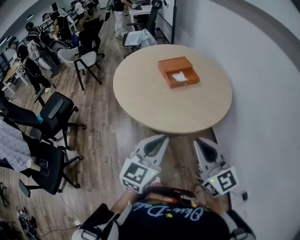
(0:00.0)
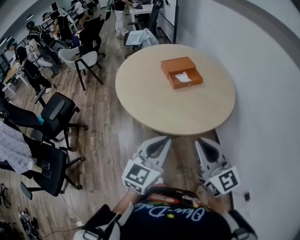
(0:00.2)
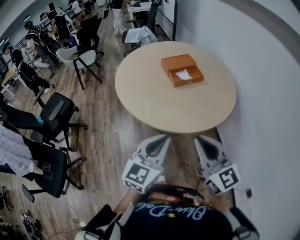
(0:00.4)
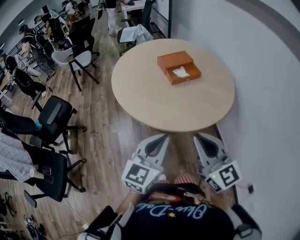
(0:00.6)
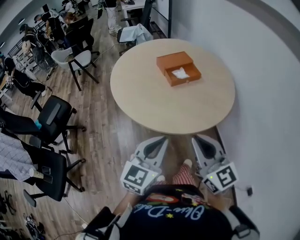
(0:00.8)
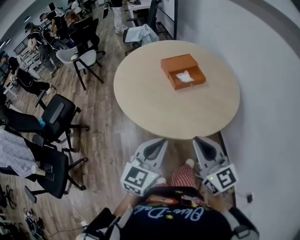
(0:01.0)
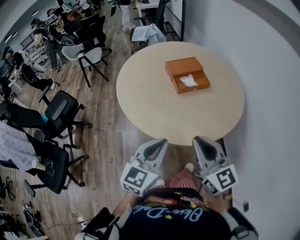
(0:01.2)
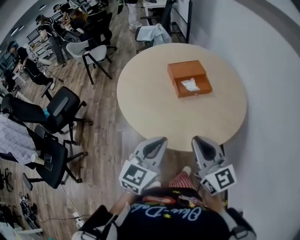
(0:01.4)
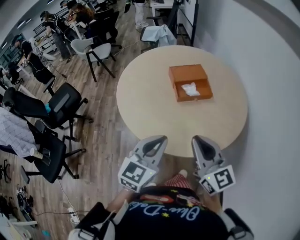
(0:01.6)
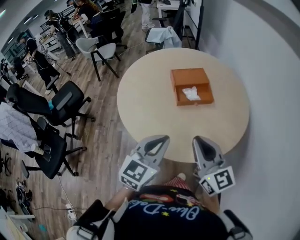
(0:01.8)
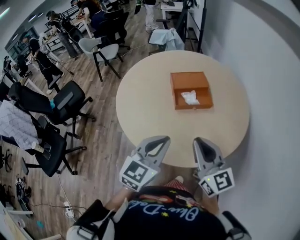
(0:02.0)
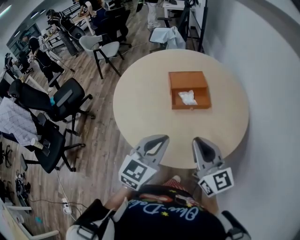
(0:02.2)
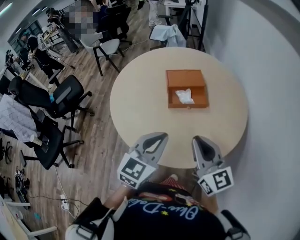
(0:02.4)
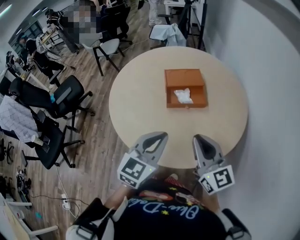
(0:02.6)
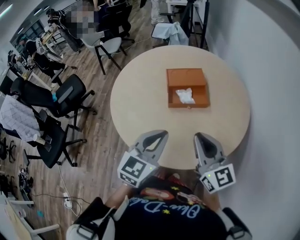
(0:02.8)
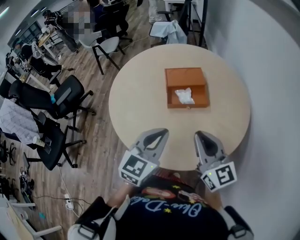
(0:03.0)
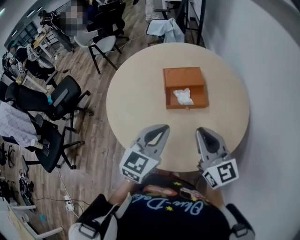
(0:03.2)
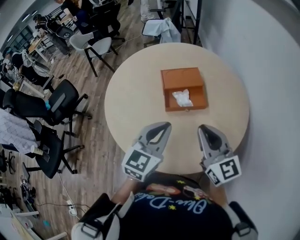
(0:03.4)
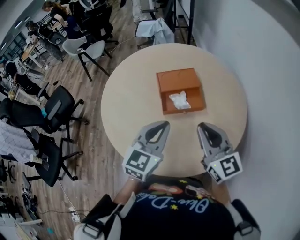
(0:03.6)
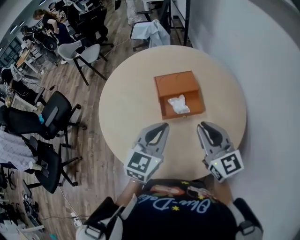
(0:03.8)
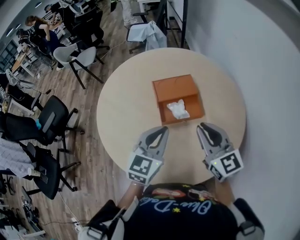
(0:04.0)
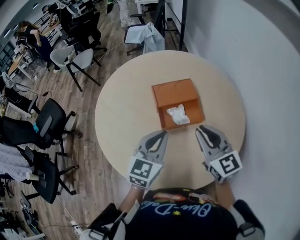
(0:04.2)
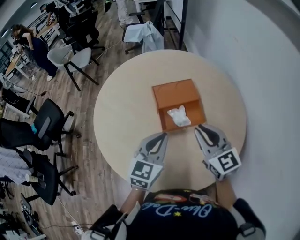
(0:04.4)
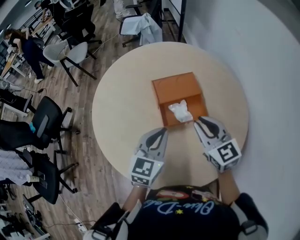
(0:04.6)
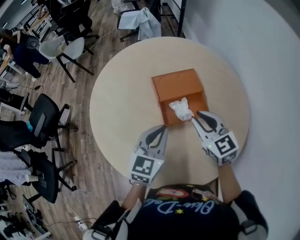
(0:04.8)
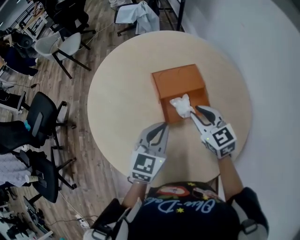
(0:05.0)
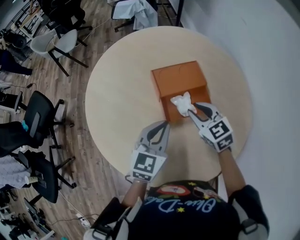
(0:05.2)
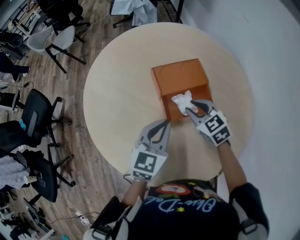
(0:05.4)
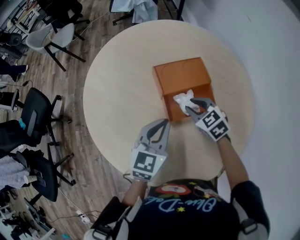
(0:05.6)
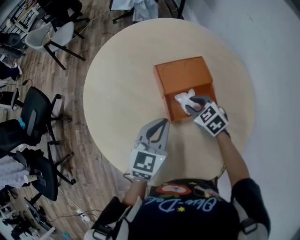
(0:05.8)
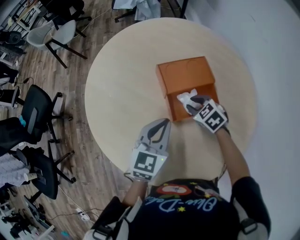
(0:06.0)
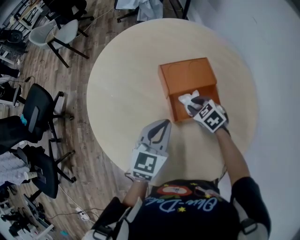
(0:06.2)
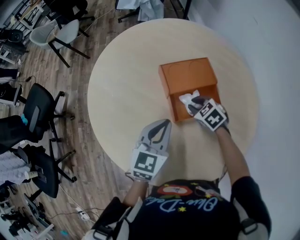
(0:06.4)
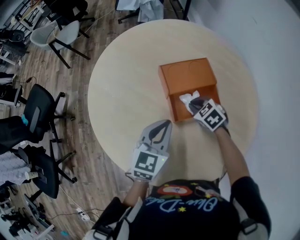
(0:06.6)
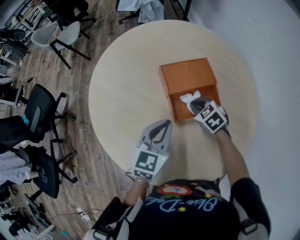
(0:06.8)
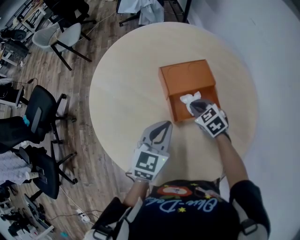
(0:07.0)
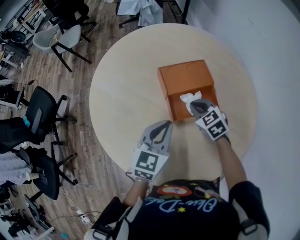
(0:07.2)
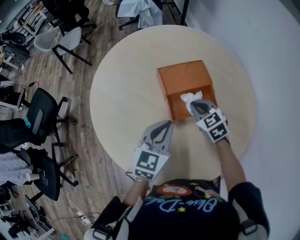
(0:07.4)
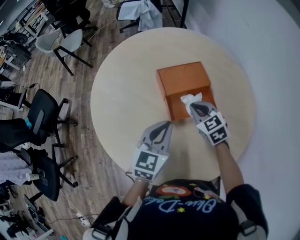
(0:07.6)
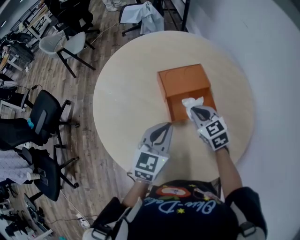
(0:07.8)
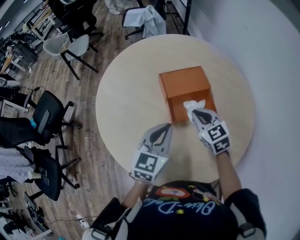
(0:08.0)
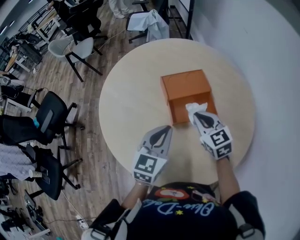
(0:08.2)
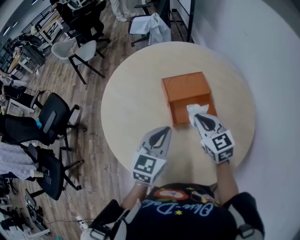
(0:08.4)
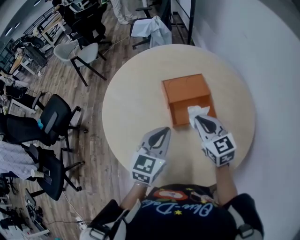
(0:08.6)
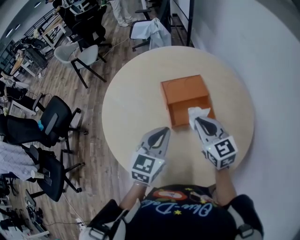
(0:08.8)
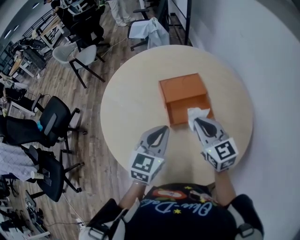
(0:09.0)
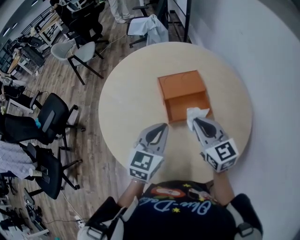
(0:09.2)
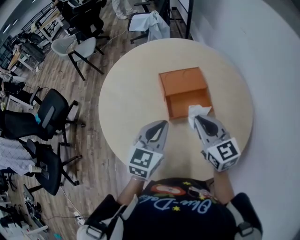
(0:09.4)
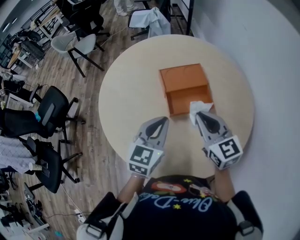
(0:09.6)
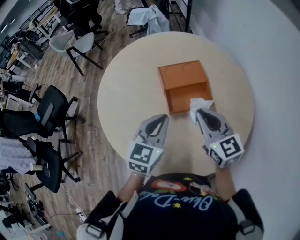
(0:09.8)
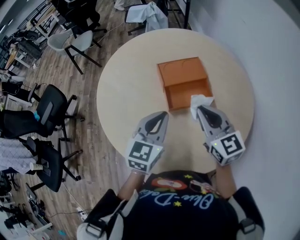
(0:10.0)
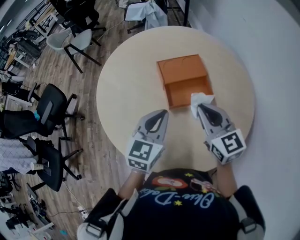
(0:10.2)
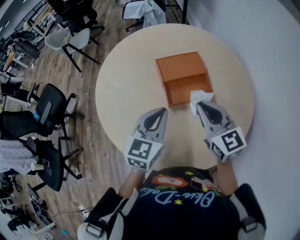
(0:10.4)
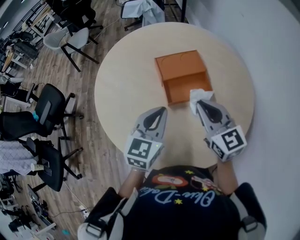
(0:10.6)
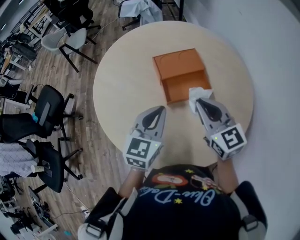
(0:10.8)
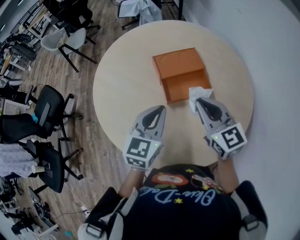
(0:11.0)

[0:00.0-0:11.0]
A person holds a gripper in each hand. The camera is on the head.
0:00.0 to 0:01.6: The two grippers go about 15 cm forward.
0:01.6 to 0:03.2: The two grippers go approximately 15 cm forward and to the right.
0:03.2 to 0:04.8: The grippers both shift forward and downward by approximately 20 cm. The right gripper changes its angle by approximately 30 degrees.
0:04.8 to 0:06.2: The right gripper goes roughly 20 cm downward, and tips its fingers downward by about 40 degrees, while the left gripper shifts by some 5 cm.
0:06.2 to 0:07.8: The right gripper is displaced upward by roughly 10 cm, and rotates approximately 30 degrees.
0:07.8 to 0:09.4: The right gripper heads upward and backward, covering roughly 15 cm, and swivels roughly 20 degrees.
0:09.4 to 0:11.0: Both grippers stay about where they are.

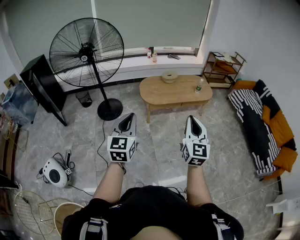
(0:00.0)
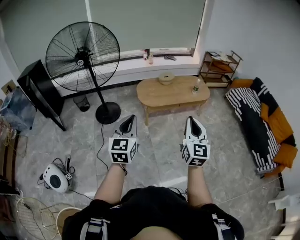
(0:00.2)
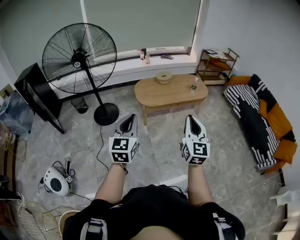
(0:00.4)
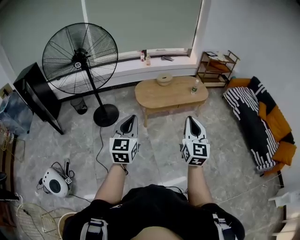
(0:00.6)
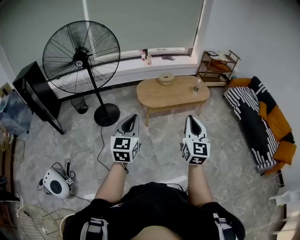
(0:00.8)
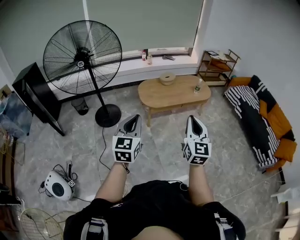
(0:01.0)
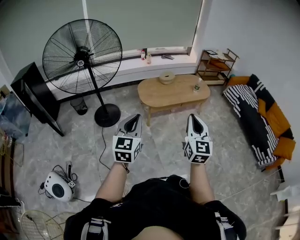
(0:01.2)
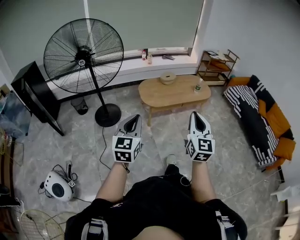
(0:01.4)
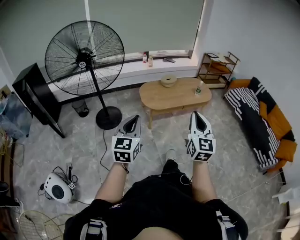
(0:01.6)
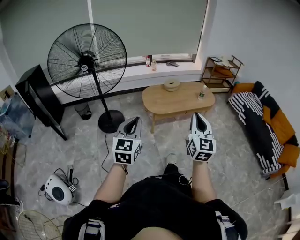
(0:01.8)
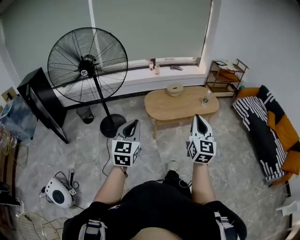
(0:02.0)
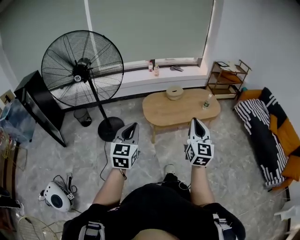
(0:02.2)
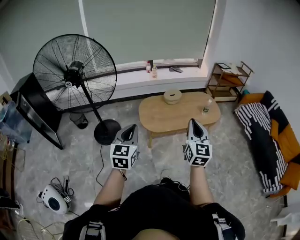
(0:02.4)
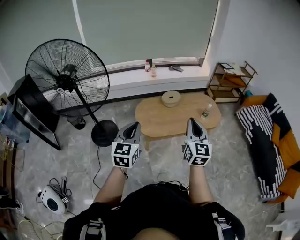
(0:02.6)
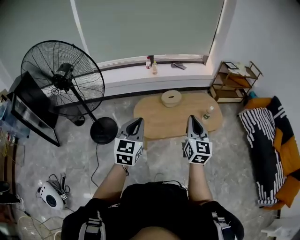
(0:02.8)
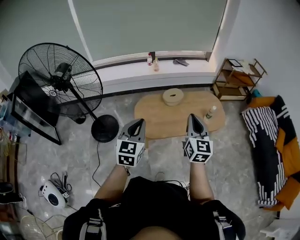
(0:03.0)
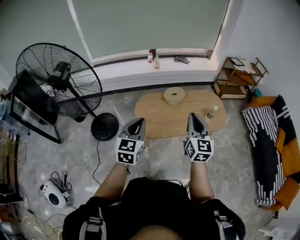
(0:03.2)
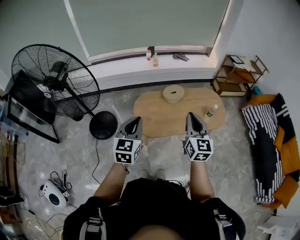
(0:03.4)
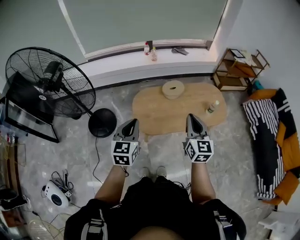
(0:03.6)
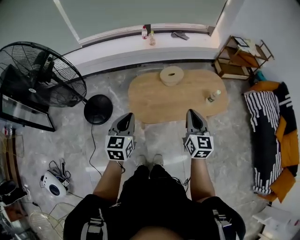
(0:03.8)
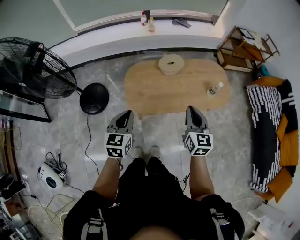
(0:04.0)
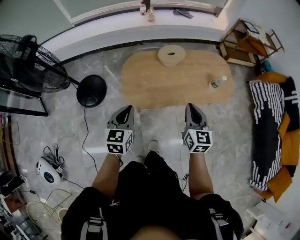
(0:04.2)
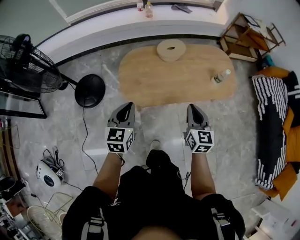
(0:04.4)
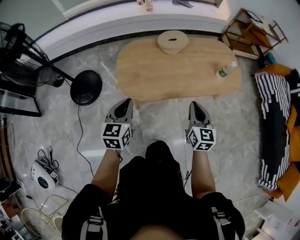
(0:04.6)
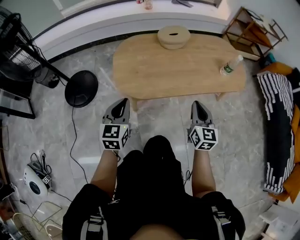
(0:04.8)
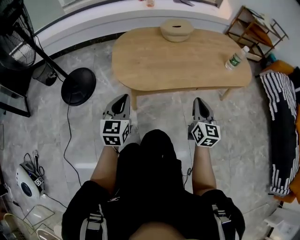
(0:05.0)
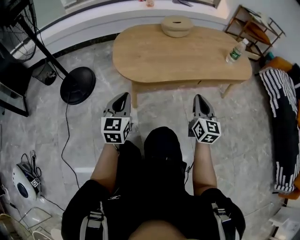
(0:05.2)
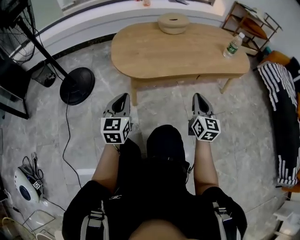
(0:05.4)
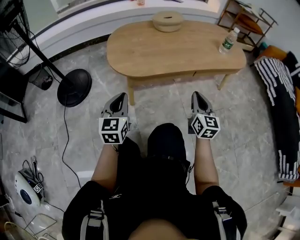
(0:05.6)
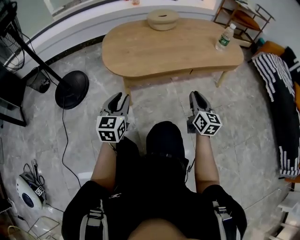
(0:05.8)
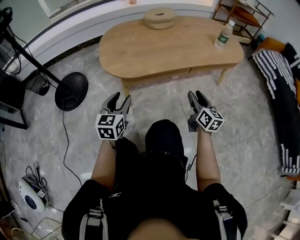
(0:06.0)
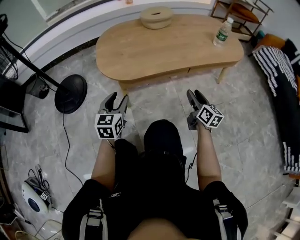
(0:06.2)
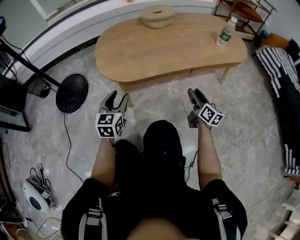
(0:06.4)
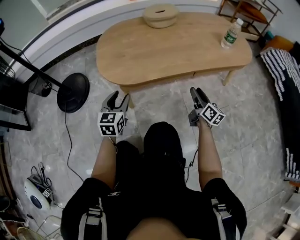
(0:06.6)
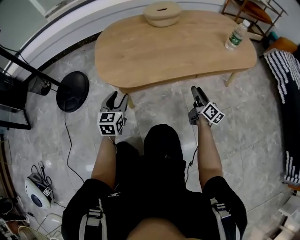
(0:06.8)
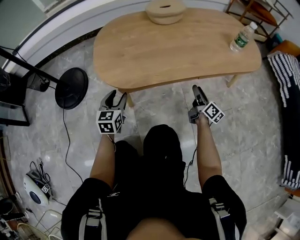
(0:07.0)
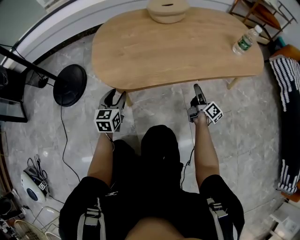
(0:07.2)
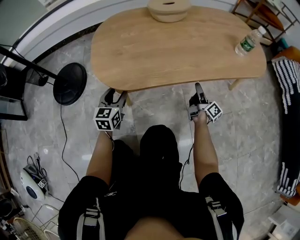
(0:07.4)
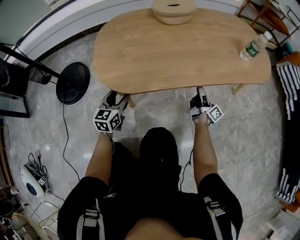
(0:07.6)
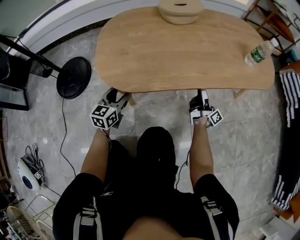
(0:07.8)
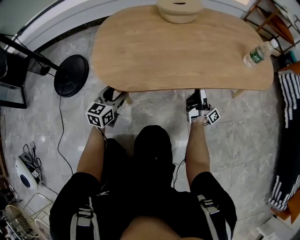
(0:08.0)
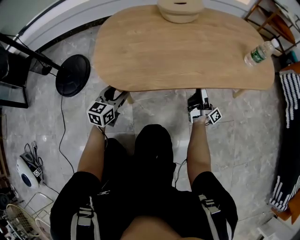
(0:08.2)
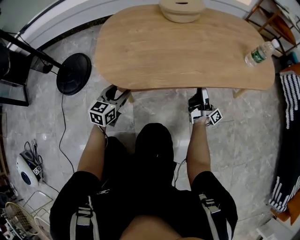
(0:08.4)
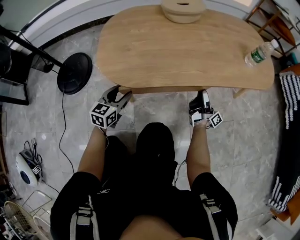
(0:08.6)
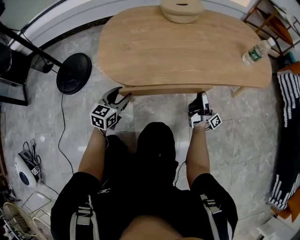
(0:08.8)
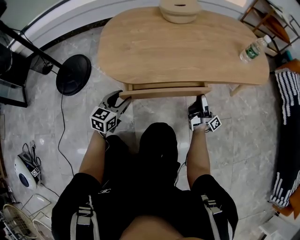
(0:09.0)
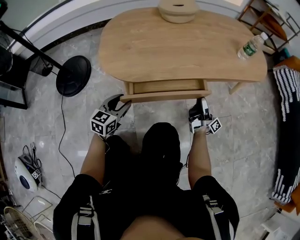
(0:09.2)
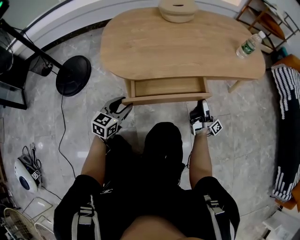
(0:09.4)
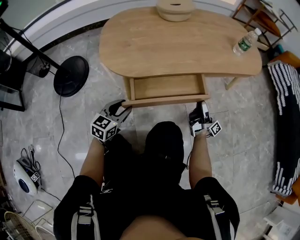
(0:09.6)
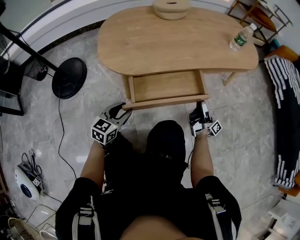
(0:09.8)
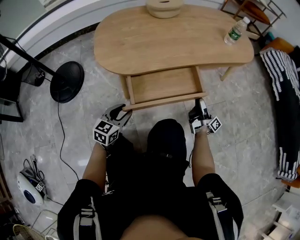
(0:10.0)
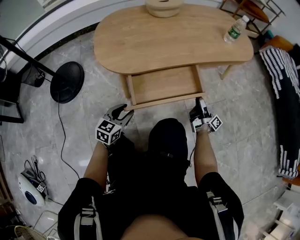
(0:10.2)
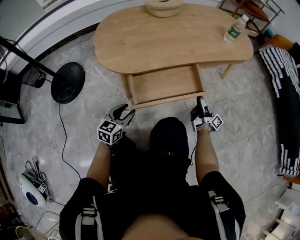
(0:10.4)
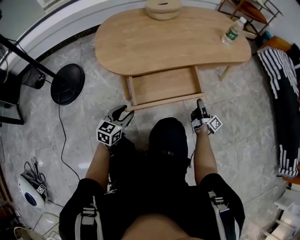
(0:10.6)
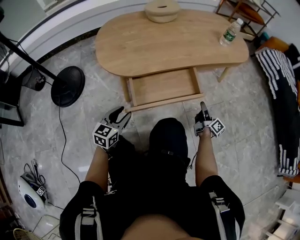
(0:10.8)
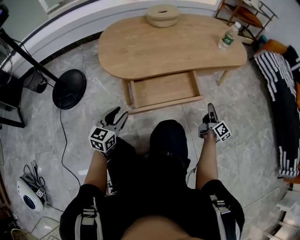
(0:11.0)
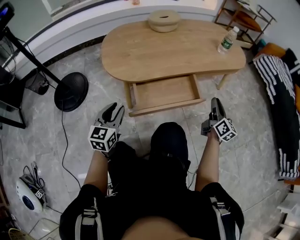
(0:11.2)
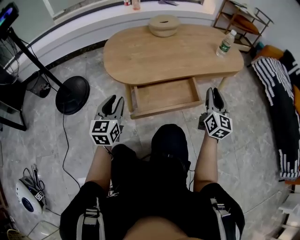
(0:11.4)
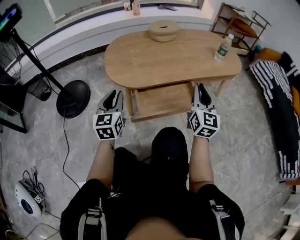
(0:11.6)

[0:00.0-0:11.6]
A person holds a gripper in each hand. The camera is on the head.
0:00.0 to 0:01.4: The two grippers go some 10 cm to the left.
0:01.4 to 0:02.8: Both grippers are carried forward, about 60 cm.
0:02.8 to 0:04.4: The two grippers go roughly 35 cm downward and forward. The right gripper changes its angle by roughly 20 degrees.
0:04.4 to 0:05.8: Both grippers move downward, roughly 40 cm. The left gripper opens.
0:05.8 to 0:07.2: Both grippers move forward and downward, about 25 cm. The left gripper opens. Meanwhile the right gripper rolls clockwise, seen from behind, by roughly 50 degrees, and opens.
0:07.2 to 0:08.8: The right gripper changes its angle by roughly 30 degrees.
0:08.8 to 0:10.2: The two grippers go some 15 cm backward.
0:10.2 to 0:11.6: The left gripper is displaced upward by some 20 cm, and swivels some 30 degrees. Meanwhile the right gripper heads upward, covering approximately 30 cm, rotates around the line of its fingers by some 80 degrees, counterclockwise from behind, and closes its fingers.

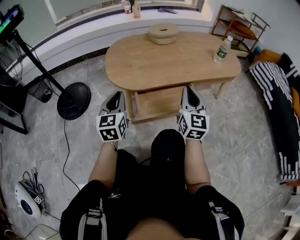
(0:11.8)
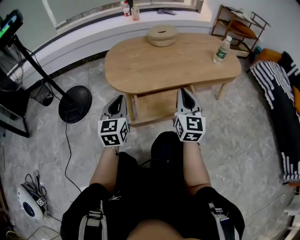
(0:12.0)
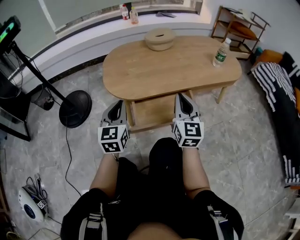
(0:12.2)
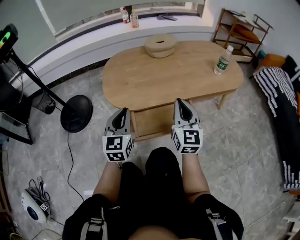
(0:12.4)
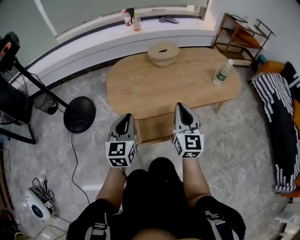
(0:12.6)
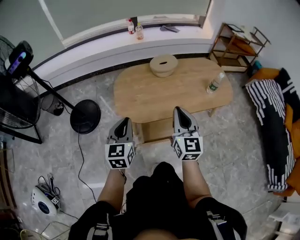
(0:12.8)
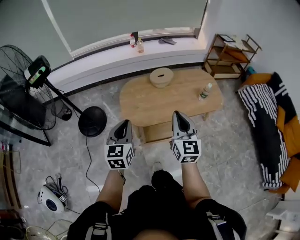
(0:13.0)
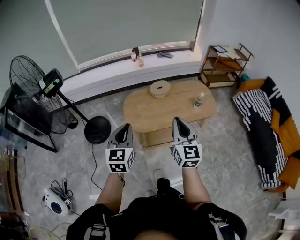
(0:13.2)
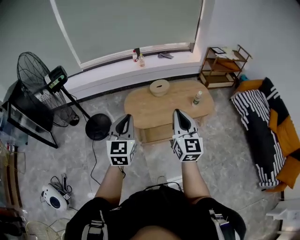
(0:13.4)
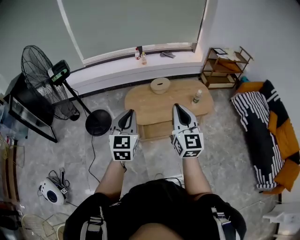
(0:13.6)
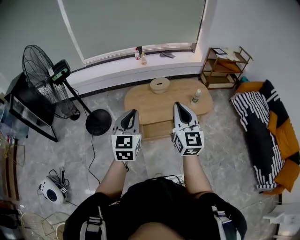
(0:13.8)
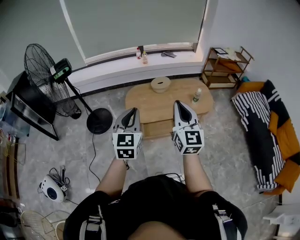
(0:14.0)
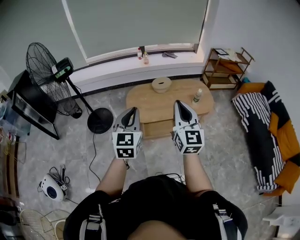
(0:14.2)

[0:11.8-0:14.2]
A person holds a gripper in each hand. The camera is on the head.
0:11.8 to 0:13.0: Both grippers move upward, about 50 cm.
0:13.0 to 0:14.2: The two grippers go some 30 cm upward and backward.
